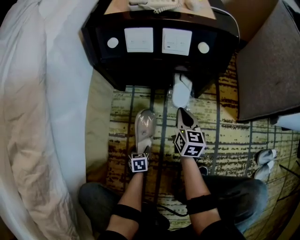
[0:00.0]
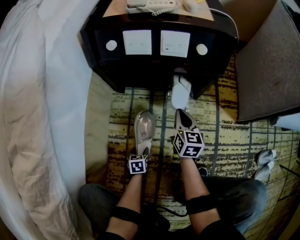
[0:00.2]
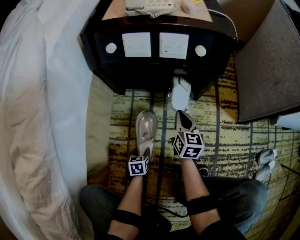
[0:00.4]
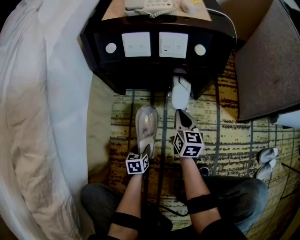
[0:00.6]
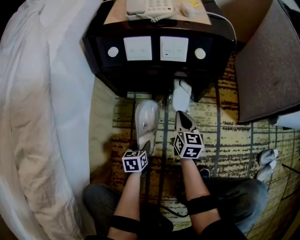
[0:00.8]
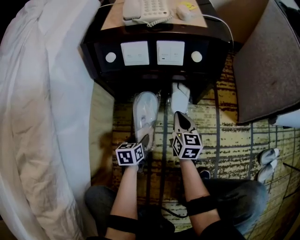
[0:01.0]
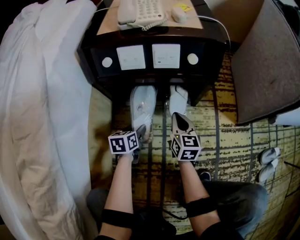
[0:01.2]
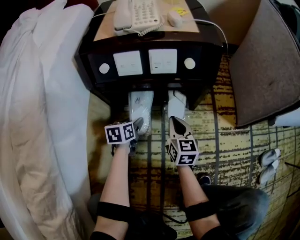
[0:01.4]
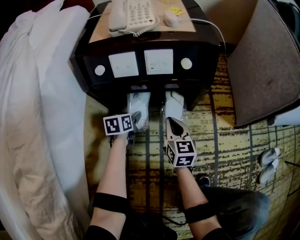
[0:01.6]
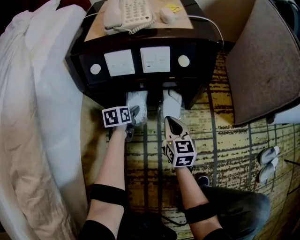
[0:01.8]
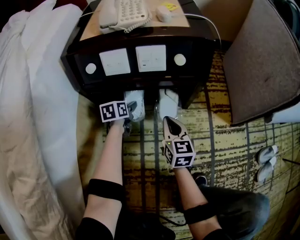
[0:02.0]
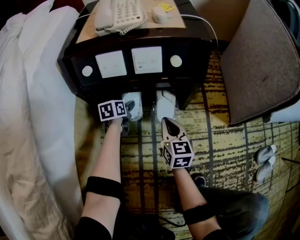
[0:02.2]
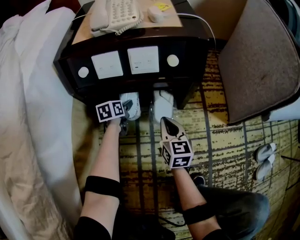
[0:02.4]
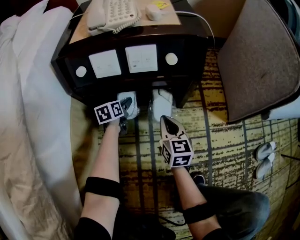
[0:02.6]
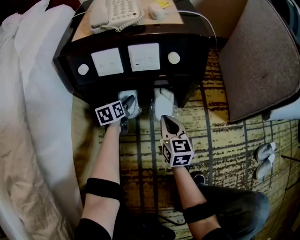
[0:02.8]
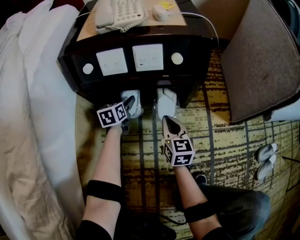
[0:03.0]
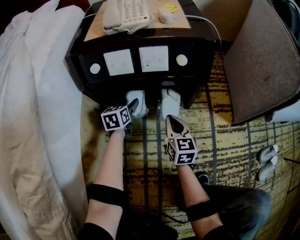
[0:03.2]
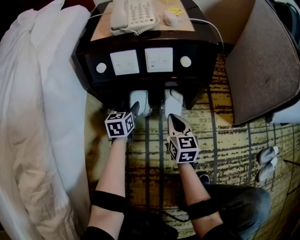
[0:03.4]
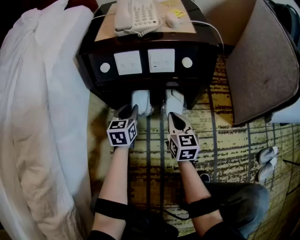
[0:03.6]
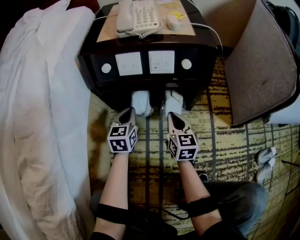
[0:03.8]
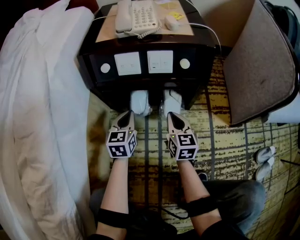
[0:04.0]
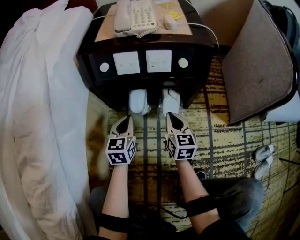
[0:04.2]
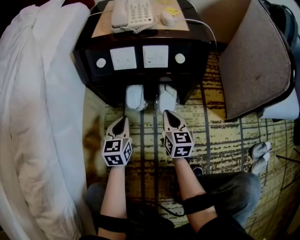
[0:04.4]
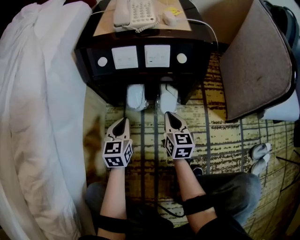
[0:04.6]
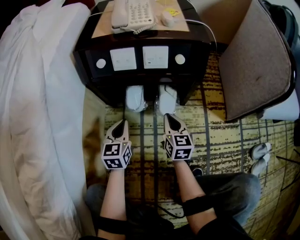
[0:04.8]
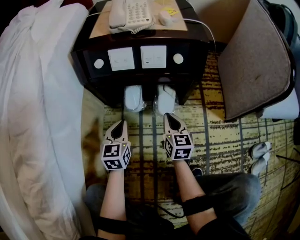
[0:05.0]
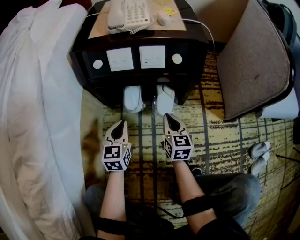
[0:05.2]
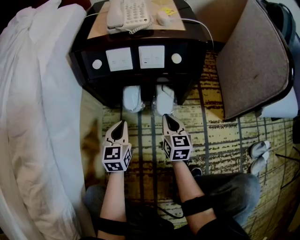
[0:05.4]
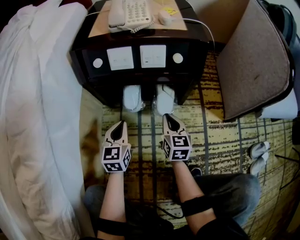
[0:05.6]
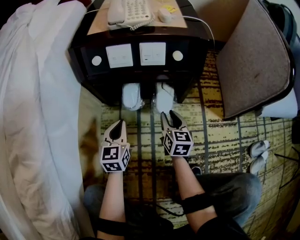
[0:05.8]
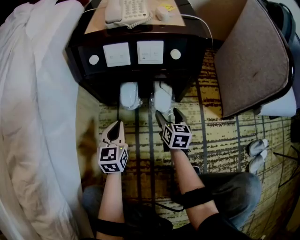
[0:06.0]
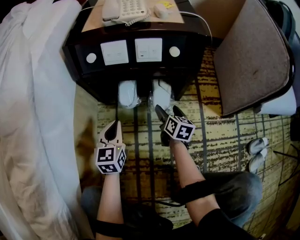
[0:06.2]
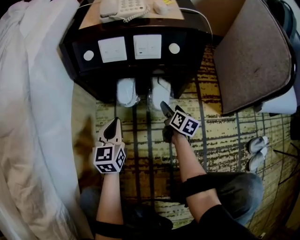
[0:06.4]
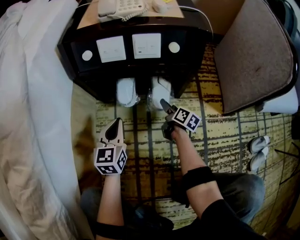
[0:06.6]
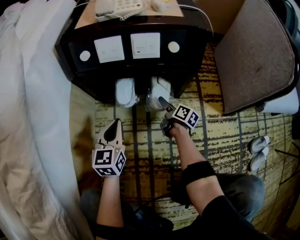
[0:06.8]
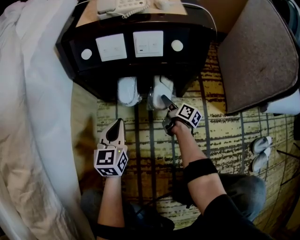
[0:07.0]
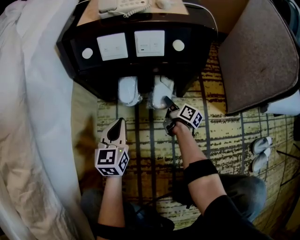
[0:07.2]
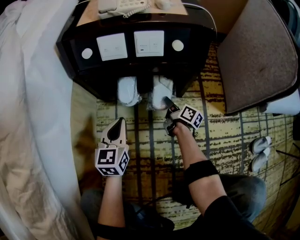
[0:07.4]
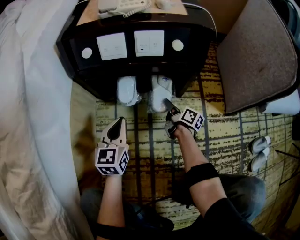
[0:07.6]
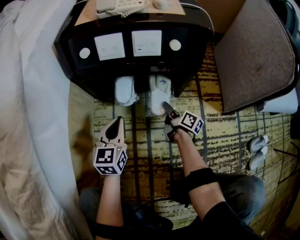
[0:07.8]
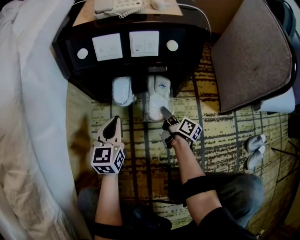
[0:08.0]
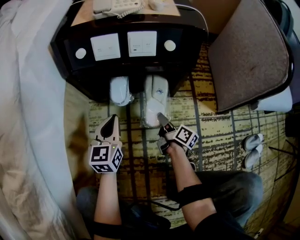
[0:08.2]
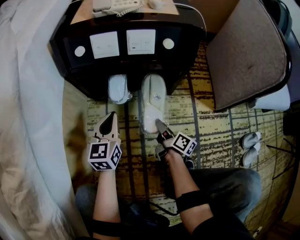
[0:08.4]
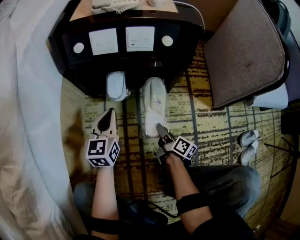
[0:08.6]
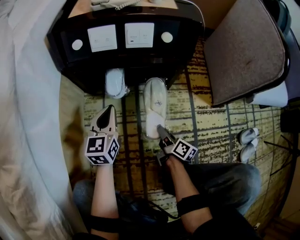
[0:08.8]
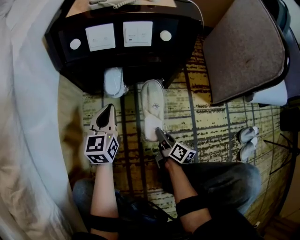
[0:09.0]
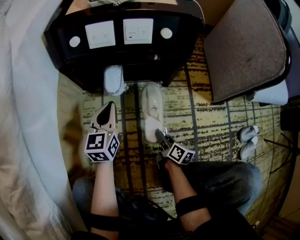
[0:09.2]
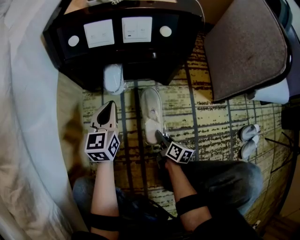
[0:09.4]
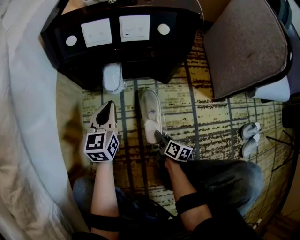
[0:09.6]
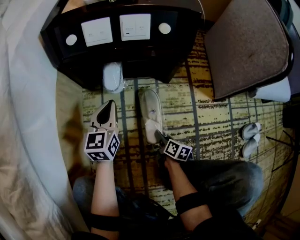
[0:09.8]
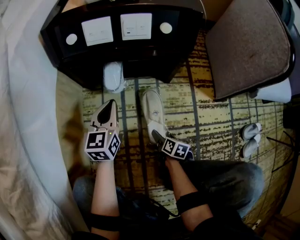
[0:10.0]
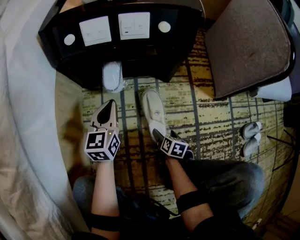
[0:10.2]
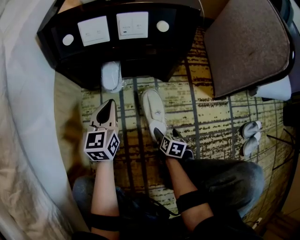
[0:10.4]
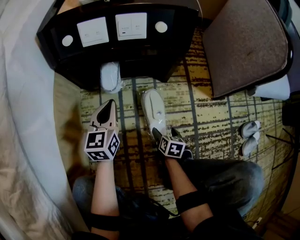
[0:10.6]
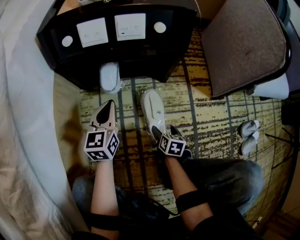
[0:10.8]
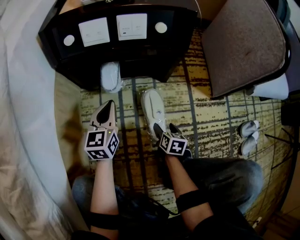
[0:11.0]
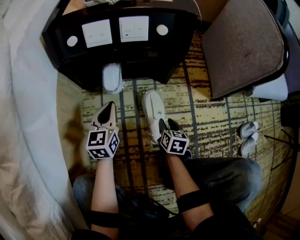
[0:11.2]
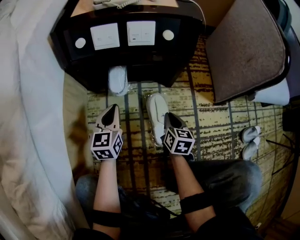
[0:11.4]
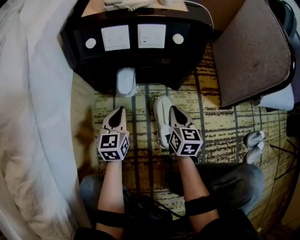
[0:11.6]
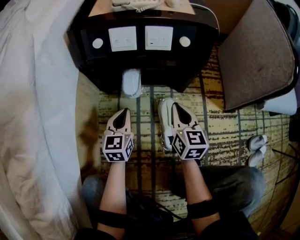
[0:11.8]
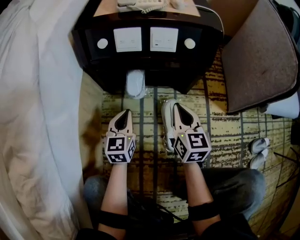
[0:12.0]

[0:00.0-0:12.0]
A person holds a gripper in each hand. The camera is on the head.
0:00.0 to 0:01.6: The left gripper shifts approximately 30 cm forward and upward.
0:01.6 to 0:03.0: The left gripper heads forward, covering roughly 5 cm, and opens its fingers.
0:03.0 to 0:04.4: The left gripper heads backward and upward, covering roughly 20 cm, and closes.
0:04.4 to 0:06.0: The right gripper moves downward, some 5 cm, and opens up.
0:06.0 to 0:07.6: The right gripper goes some 10 cm downward, twists about 40 degrees clockwise, seen from behind, and closes up.
0:07.6 to 0:09.0: The right gripper travels backward by roughly 20 cm.
0:09.0 to 0:10.4: The right gripper travels downward by approximately 10 cm, angles its fingers downward, by some 30 degrees, and opens up.
0:10.4 to 0:12.0: The right gripper goes approximately 30 cm upward and forward, tips its fingers upward by some 40 degrees, and closes up.

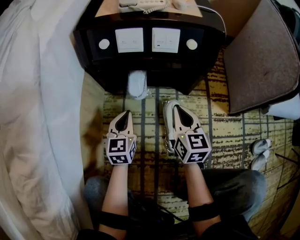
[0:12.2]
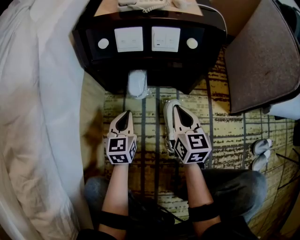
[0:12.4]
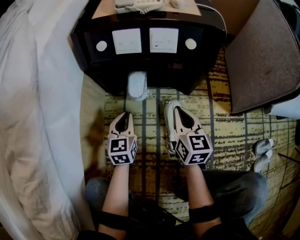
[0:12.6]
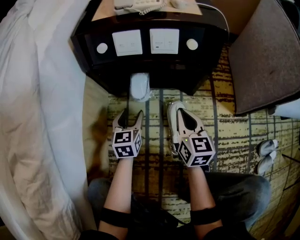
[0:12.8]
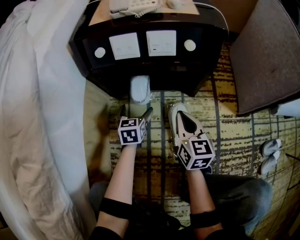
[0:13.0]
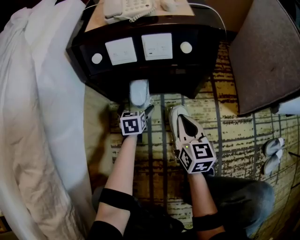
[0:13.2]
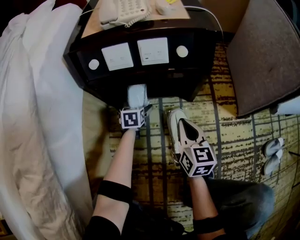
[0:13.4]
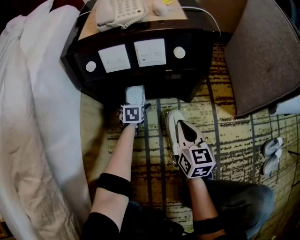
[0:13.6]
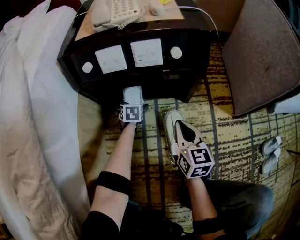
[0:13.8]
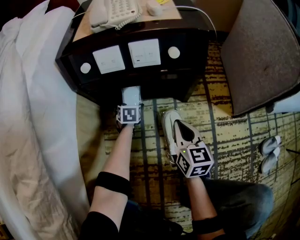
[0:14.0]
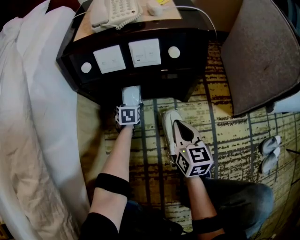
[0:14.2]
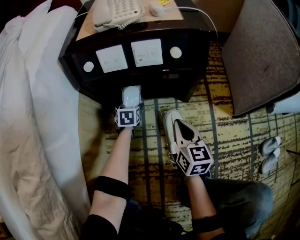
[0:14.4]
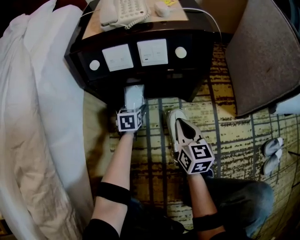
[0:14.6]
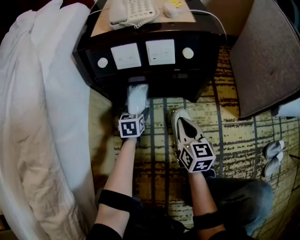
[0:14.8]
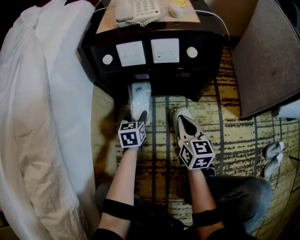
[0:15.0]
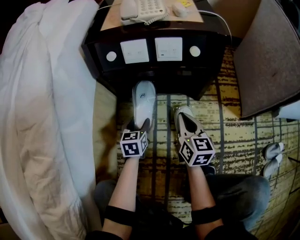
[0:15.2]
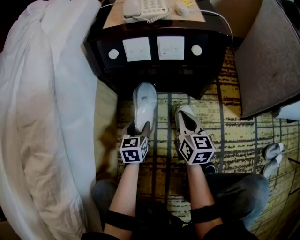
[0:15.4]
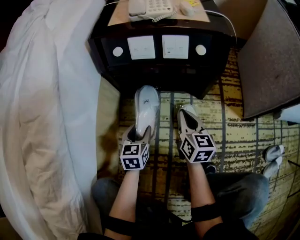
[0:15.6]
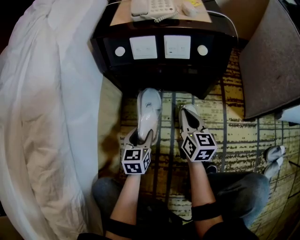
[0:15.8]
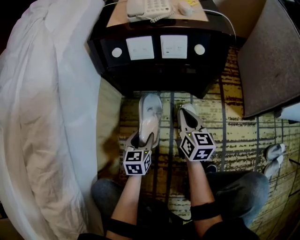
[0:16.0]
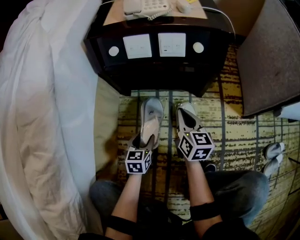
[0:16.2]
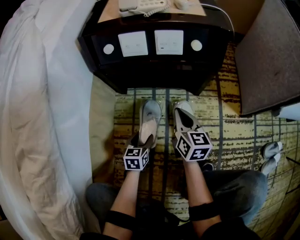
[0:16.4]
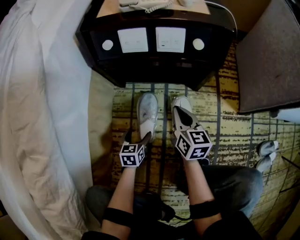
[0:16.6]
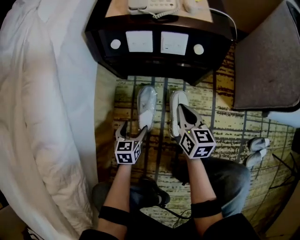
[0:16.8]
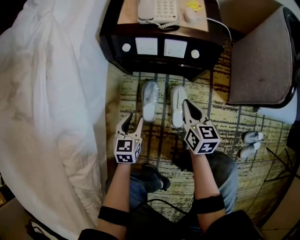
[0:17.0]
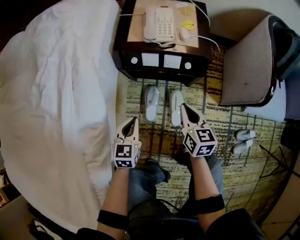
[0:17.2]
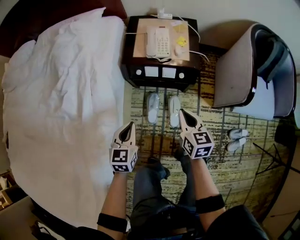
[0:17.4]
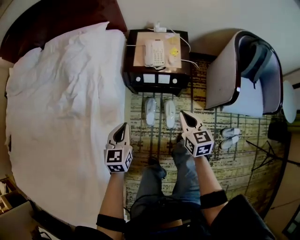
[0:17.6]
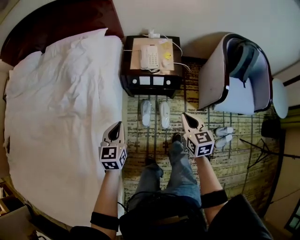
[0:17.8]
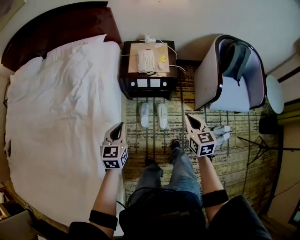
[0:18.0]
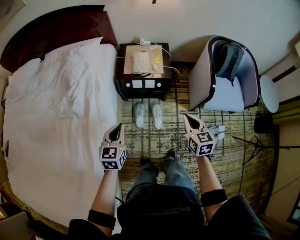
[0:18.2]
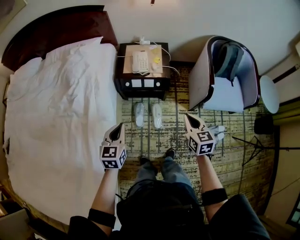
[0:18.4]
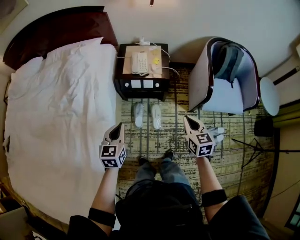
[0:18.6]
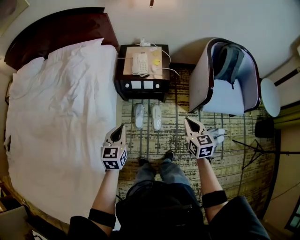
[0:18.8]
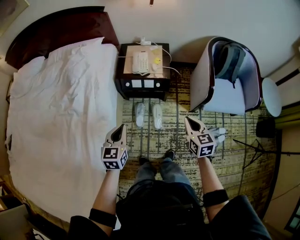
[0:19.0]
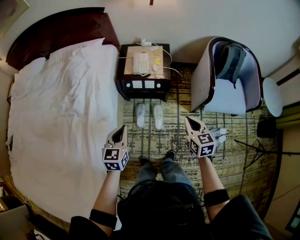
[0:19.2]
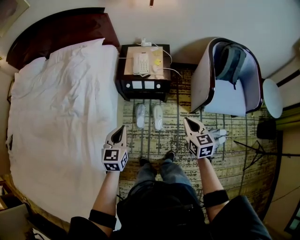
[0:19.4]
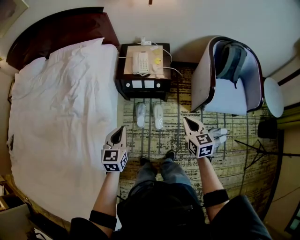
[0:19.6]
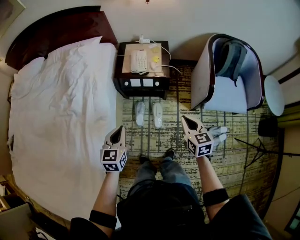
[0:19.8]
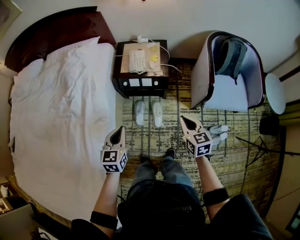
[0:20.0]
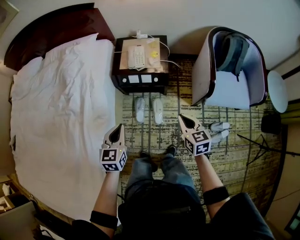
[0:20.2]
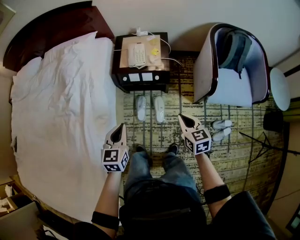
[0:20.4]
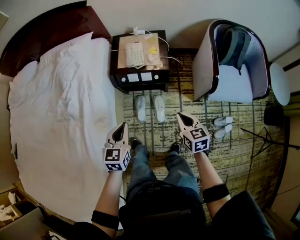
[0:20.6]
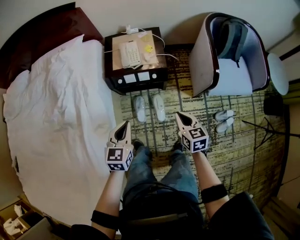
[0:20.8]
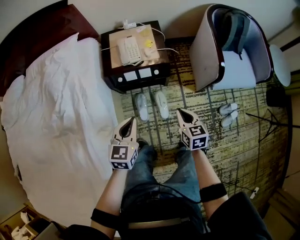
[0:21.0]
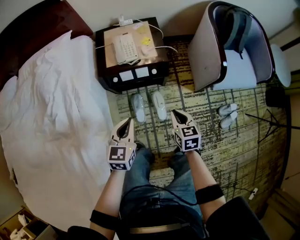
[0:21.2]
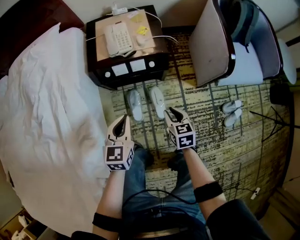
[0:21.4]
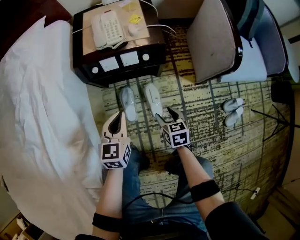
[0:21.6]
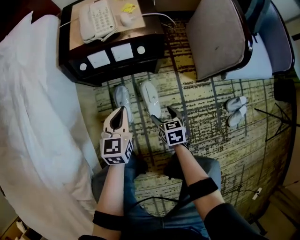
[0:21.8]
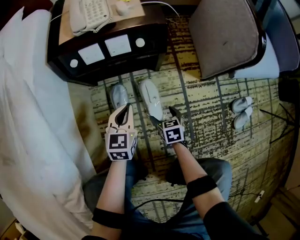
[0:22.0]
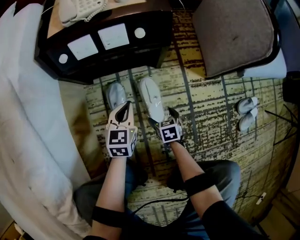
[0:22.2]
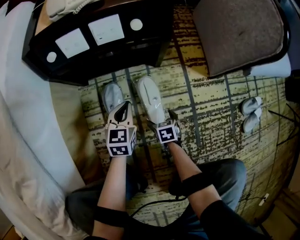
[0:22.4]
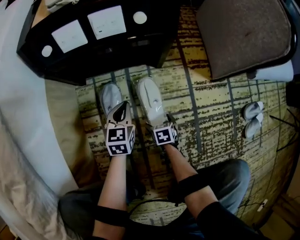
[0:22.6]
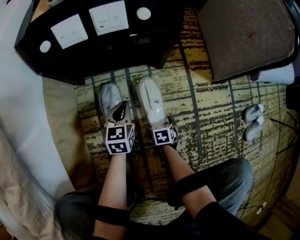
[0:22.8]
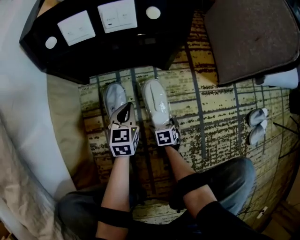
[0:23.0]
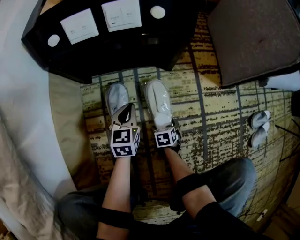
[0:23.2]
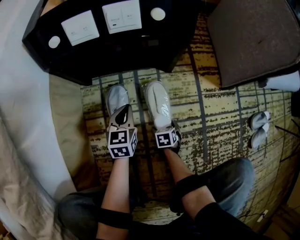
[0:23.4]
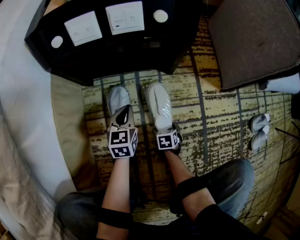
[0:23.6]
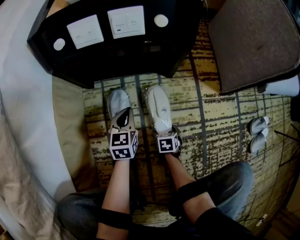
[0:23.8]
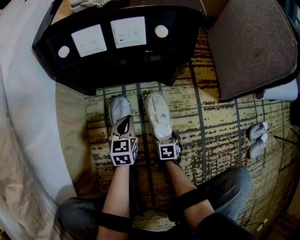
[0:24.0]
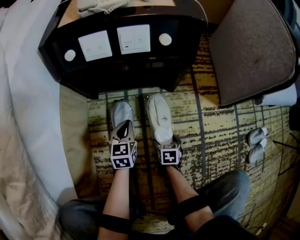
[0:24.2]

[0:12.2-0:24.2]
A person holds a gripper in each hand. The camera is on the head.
0:12.2 to 0:13.8: The left gripper travels downward and forward by approximately 20 cm, tips its fingers downward by about 30 degrees, and opens its fingers.
0:13.8 to 0:15.2: The left gripper is displaced backward and upward by about 15 cm, and closes its fingers.
0:15.2 to 0:16.6: The left gripper is displaced backward and downward by approximately 10 cm.
0:16.6 to 0:18.2: The grippers both shift upward by roughly 80 cm. The left gripper turns by roughly 20 degrees, and closes its fingers.
0:18.2 to 0:19.8: The grippers both shift to the right by approximately 5 cm.
0:19.8 to 0:21.2: The left gripper shifts about 20 cm downward and forward, while the right gripper heads downward and to the left, covering approximately 25 cm.
0:21.2 to 0:22.6: The two grippers go approximately 60 cm downward. The right gripper swivels about 30 degrees, and opens its fingers.
0:22.6 to 0:24.2: The left gripper changes place by approximately 5 cm.
